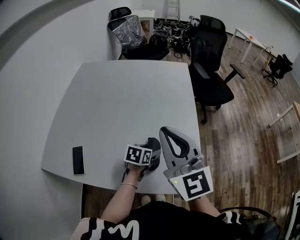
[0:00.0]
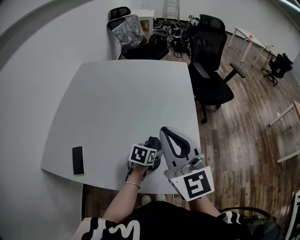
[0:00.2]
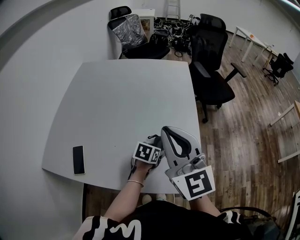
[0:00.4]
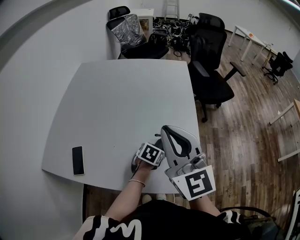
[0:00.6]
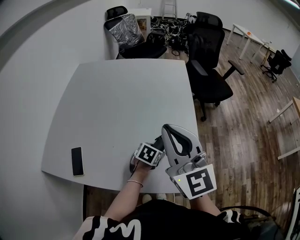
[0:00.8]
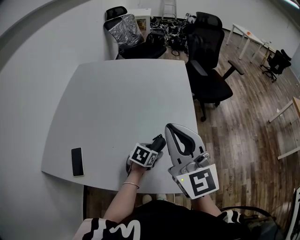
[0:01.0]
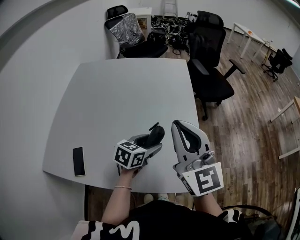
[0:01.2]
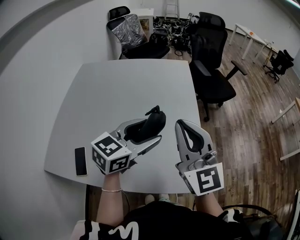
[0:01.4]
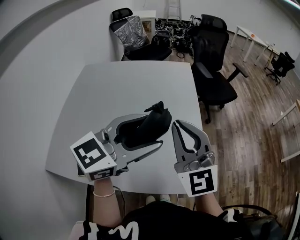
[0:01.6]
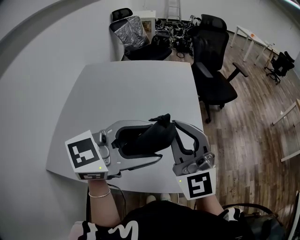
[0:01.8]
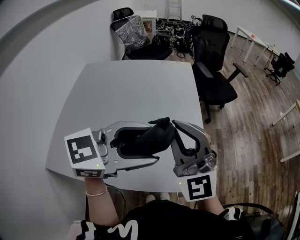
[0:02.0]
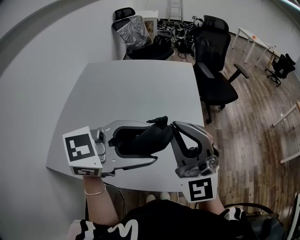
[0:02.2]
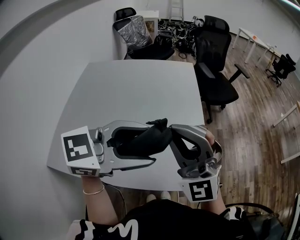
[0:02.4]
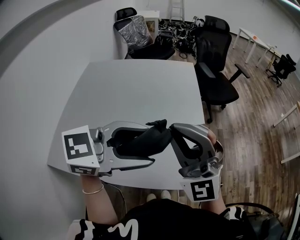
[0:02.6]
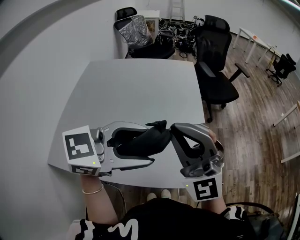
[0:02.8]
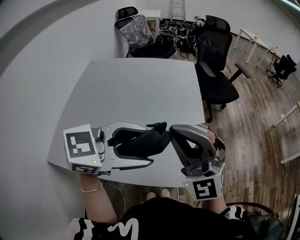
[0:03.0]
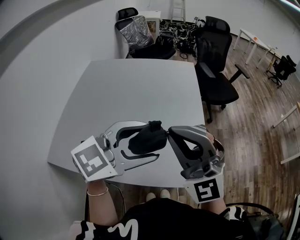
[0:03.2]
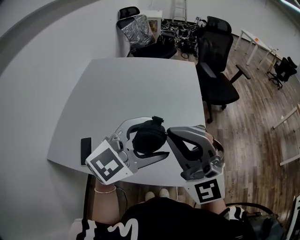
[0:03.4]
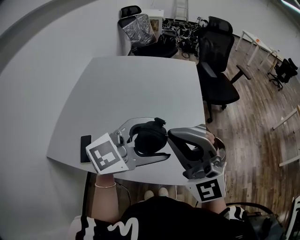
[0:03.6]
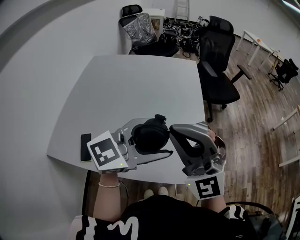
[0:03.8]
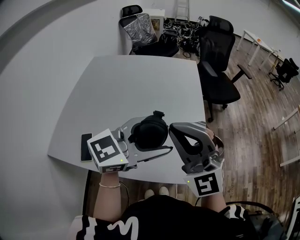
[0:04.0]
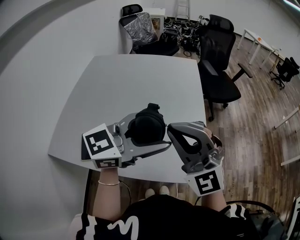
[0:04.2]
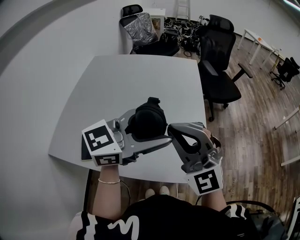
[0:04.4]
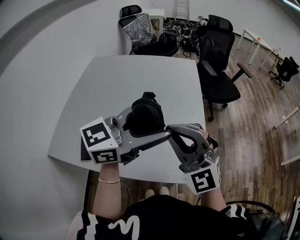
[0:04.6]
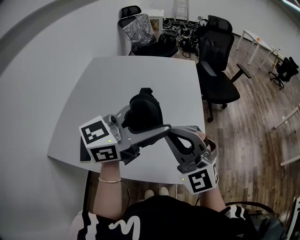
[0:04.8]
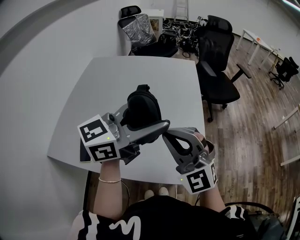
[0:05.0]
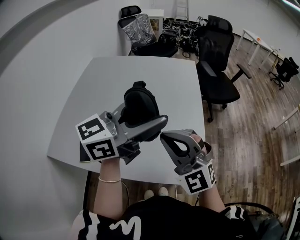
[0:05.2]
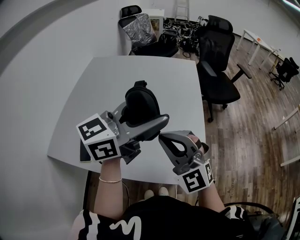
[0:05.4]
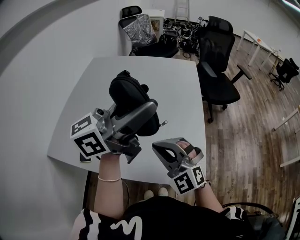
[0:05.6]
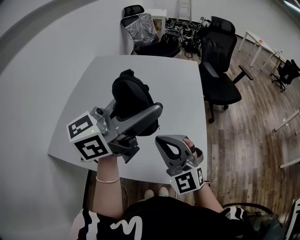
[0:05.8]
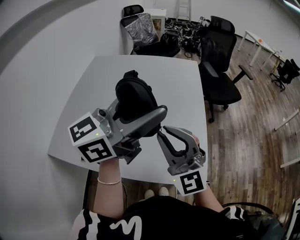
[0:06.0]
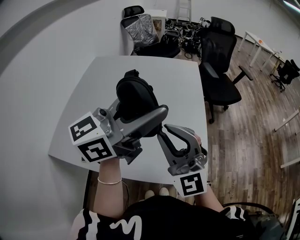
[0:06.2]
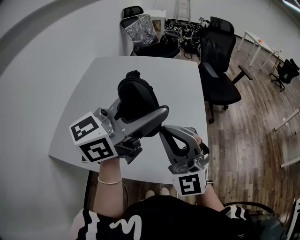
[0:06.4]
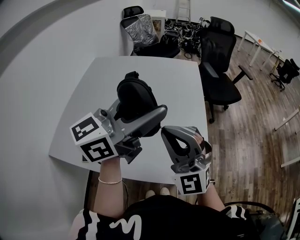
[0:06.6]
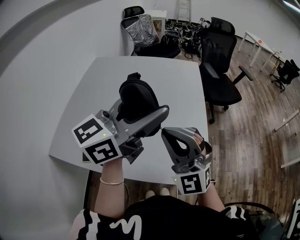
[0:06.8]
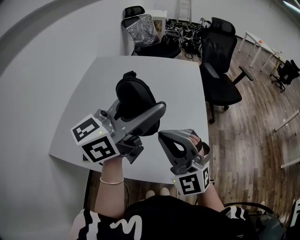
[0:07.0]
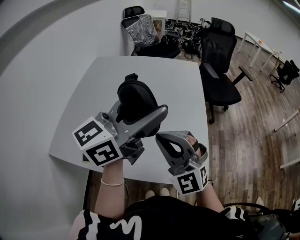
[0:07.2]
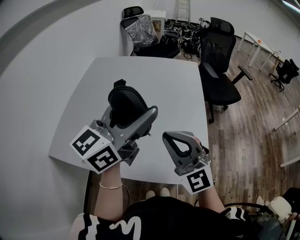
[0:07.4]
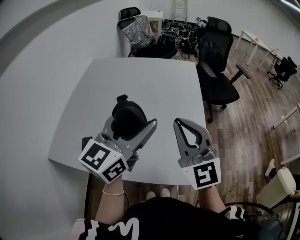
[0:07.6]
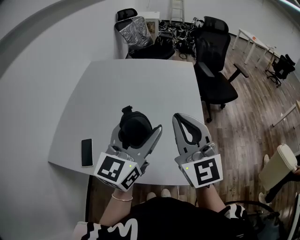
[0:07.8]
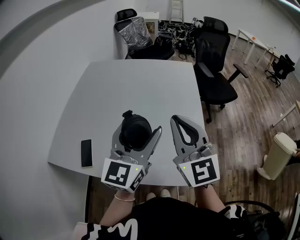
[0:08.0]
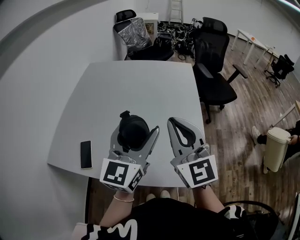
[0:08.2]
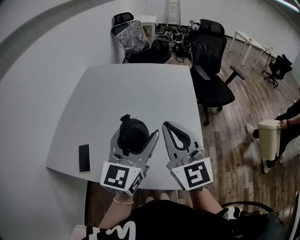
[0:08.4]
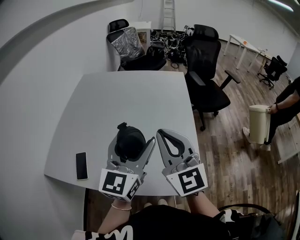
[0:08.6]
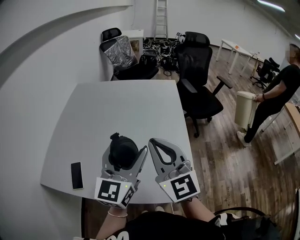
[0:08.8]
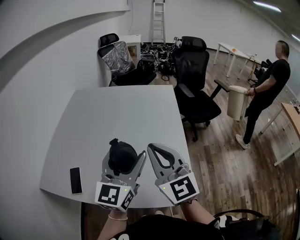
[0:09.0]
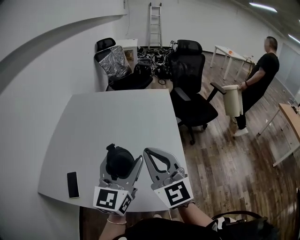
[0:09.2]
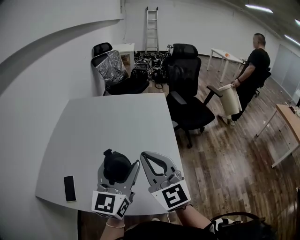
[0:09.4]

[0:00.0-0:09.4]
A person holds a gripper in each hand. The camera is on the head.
0:00.0 to 0:01.6: The left gripper goes roughly 35 cm upward, and angles its fingers upward, by about 40 degrees.
0:01.6 to 0:03.2: Both grippers move backward, about 10 cm. The right gripper rotates roughly 30 degrees.
0:03.2 to 0:04.8: The left gripper is displaced forward and upward by some 5 cm, and rotates roughly 30 degrees; the right gripper travels downward by about 5 cm.
0:04.8 to 0:06.2: The right gripper goes downward and returns, some 10 cm each way. The left gripper changes place by approximately 5 cm.
0:06.2 to 0:07.8: The right gripper shifts about 5 cm forward, and rotates roughly 20 degrees. The left gripper is displaced downward by approximately 10 cm, and changes its angle by some 30 degrees.
0:07.8 to 0:09.4: The left gripper travels to the right by approximately 5 cm.

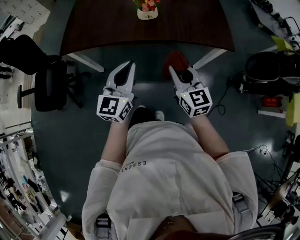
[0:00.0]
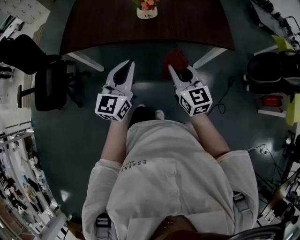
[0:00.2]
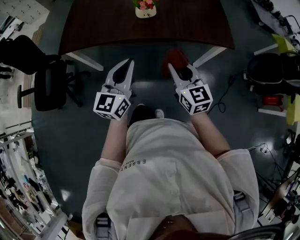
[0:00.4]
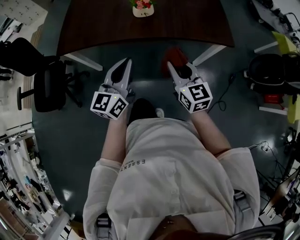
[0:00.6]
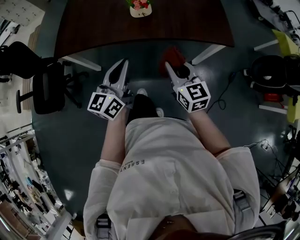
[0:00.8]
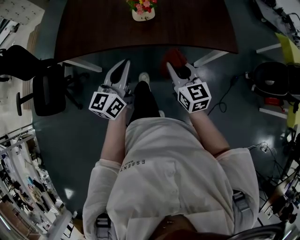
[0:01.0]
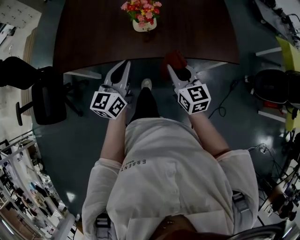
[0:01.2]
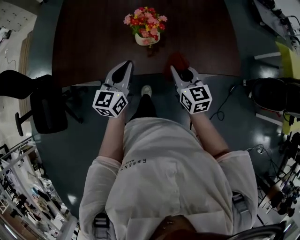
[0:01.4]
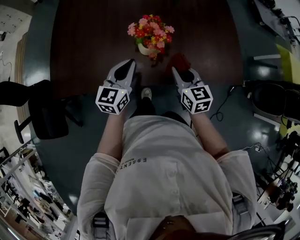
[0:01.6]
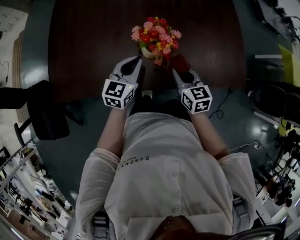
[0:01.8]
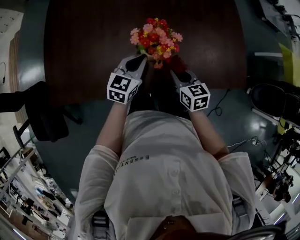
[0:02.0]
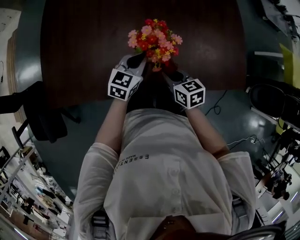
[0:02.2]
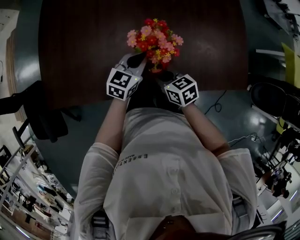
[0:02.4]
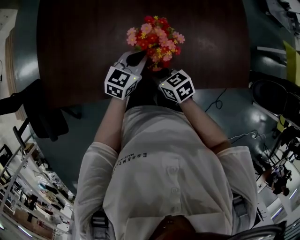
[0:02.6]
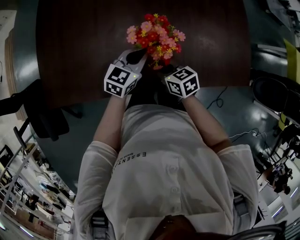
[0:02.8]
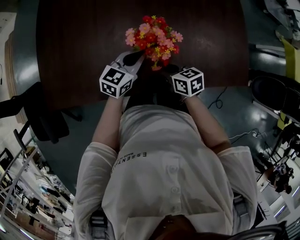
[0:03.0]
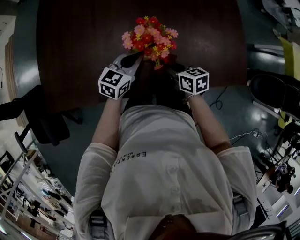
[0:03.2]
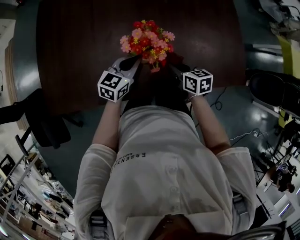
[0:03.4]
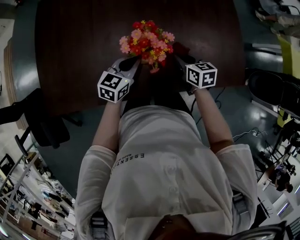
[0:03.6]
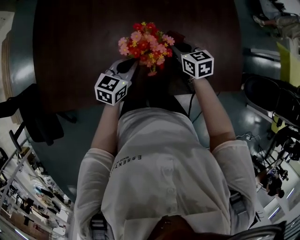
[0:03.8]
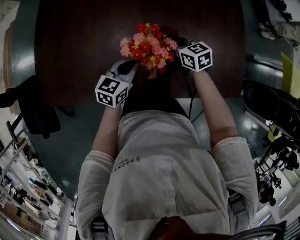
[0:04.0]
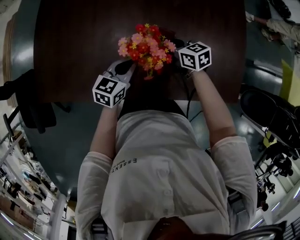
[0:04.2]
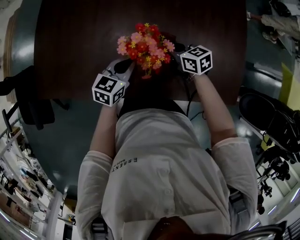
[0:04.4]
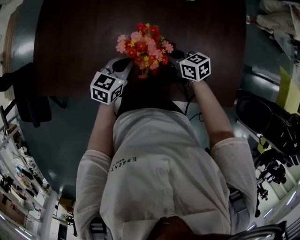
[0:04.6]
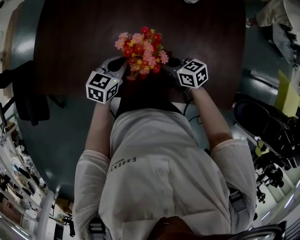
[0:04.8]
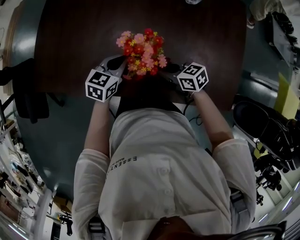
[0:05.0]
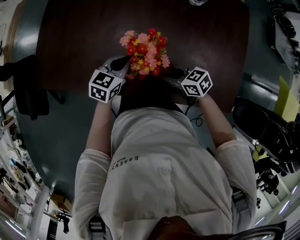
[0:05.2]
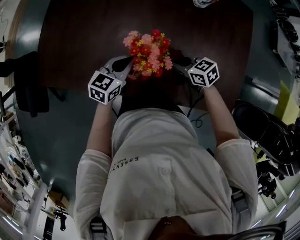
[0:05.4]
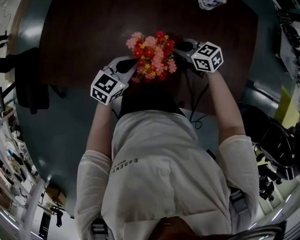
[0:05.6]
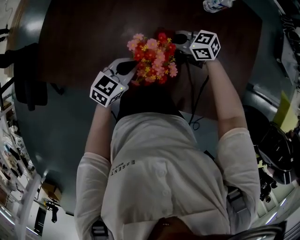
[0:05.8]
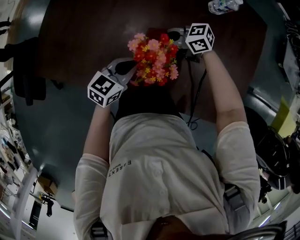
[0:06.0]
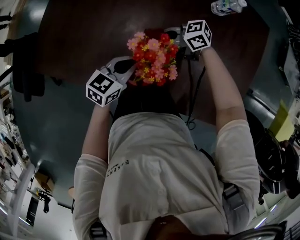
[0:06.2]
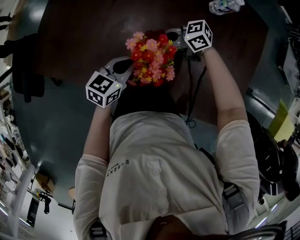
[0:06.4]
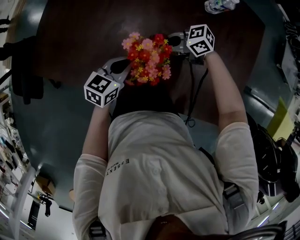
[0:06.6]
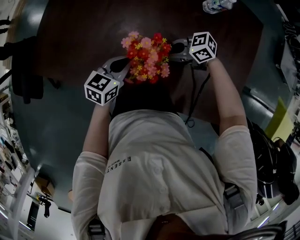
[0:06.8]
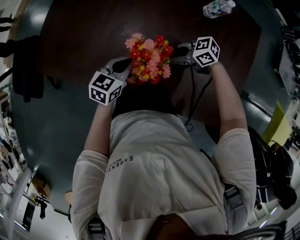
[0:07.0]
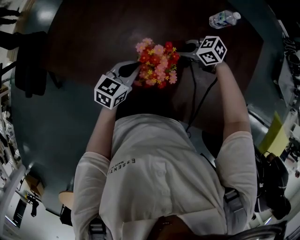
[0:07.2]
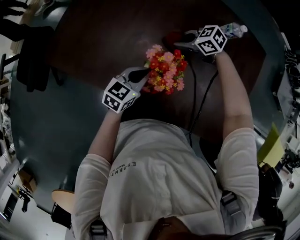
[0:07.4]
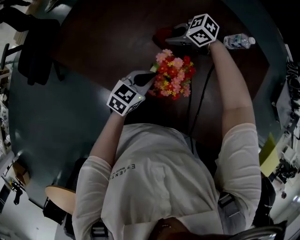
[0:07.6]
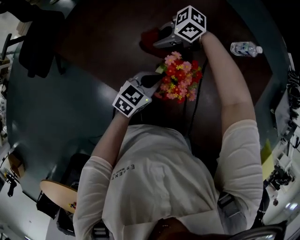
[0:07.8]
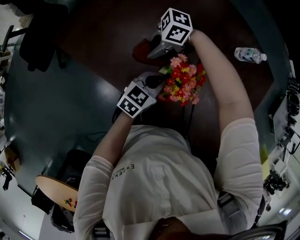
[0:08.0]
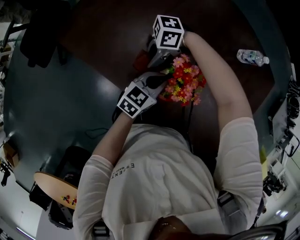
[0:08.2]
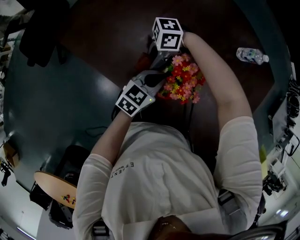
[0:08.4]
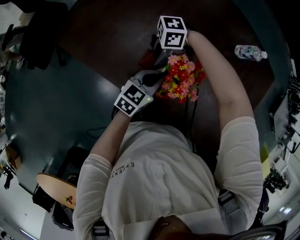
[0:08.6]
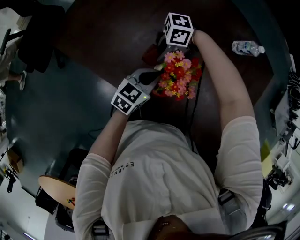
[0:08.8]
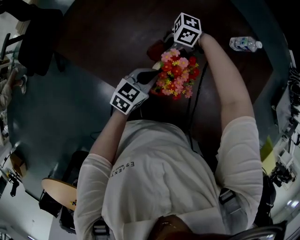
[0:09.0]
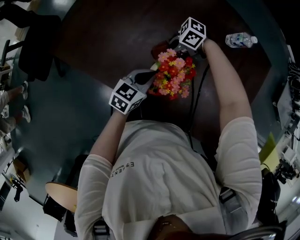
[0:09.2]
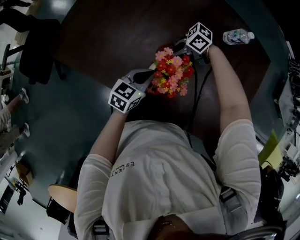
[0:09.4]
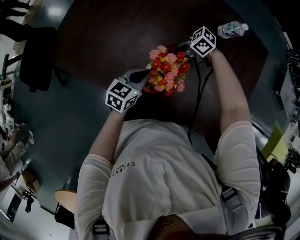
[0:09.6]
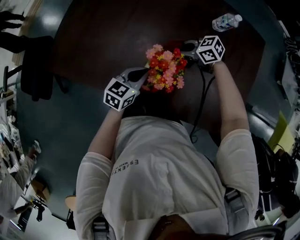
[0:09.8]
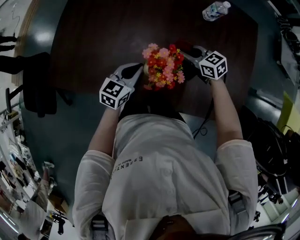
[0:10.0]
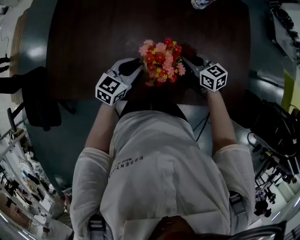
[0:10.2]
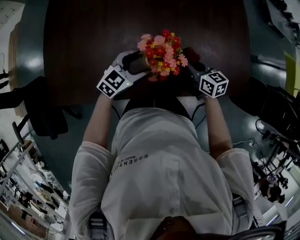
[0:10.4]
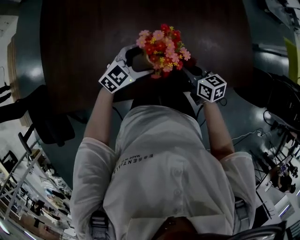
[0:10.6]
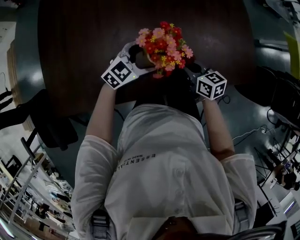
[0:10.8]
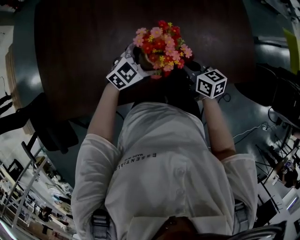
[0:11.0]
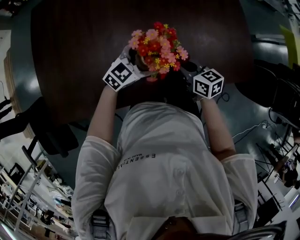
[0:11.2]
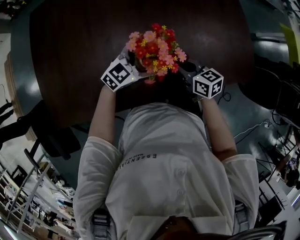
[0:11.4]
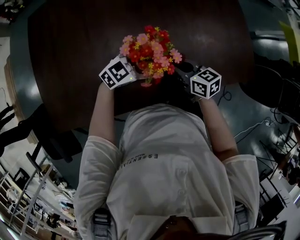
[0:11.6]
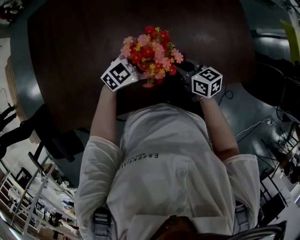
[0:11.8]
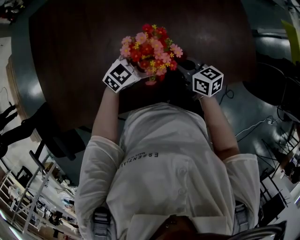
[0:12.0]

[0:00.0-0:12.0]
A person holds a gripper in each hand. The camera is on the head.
0:00.0 to 0:01.6: The two grippers go some 30 cm forward.
0:01.6 to 0:03.0: The left gripper shifts some 10 cm downward and forward, and swivels approximately 20 degrees; the right gripper travels downward and to the left by some 10 cm, and turns by some 30 degrees.
0:03.0 to 0:04.4: The right gripper heads forward, covering some 10 cm.
0:04.4 to 0:06.0: The right gripper changes its angle by some 50 degrees.
0:06.0 to 0:07.6: The right gripper shifts by some 10 cm, and changes its angle by some 30 degrees.
0:07.6 to 0:09.0: The right gripper swivels some 30 degrees.
0:09.0 to 0:10.4: The left gripper turns by about 50 degrees, and opens; the right gripper changes place by about 20 cm, and swivels about 110 degrees.
0:10.4 to 0:12.0: The left gripper goes some 5 cm to the right, and opens its fingers, while the right gripper shifts by about 5 cm.

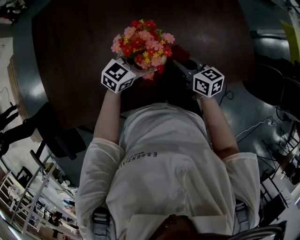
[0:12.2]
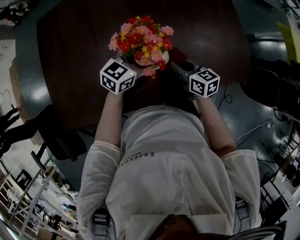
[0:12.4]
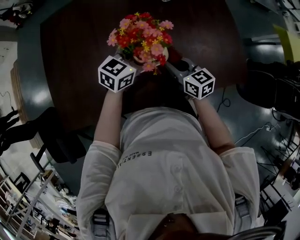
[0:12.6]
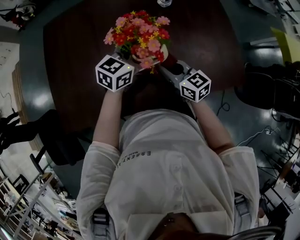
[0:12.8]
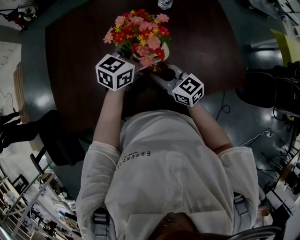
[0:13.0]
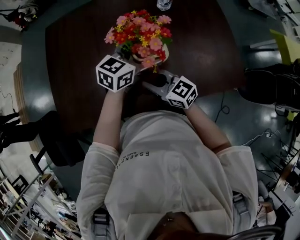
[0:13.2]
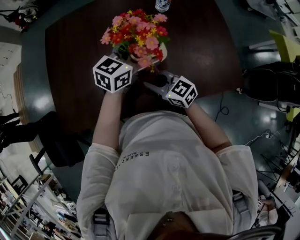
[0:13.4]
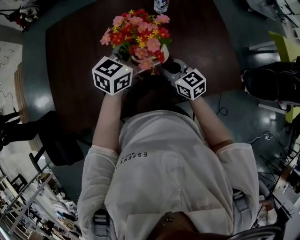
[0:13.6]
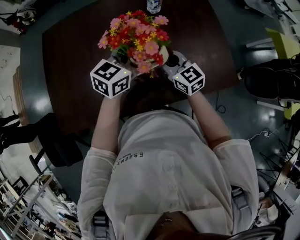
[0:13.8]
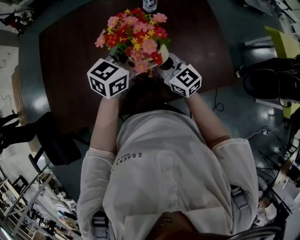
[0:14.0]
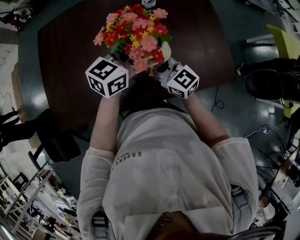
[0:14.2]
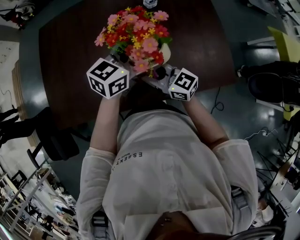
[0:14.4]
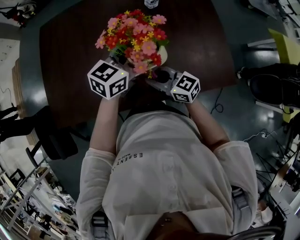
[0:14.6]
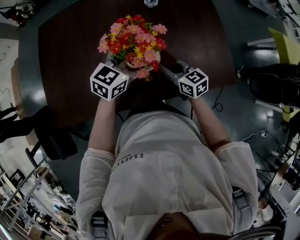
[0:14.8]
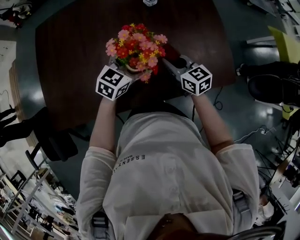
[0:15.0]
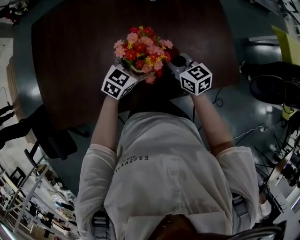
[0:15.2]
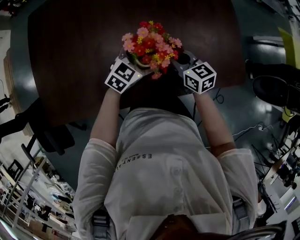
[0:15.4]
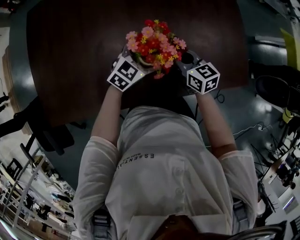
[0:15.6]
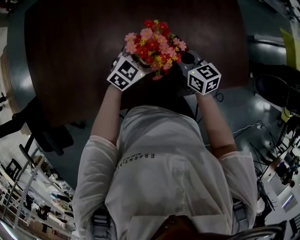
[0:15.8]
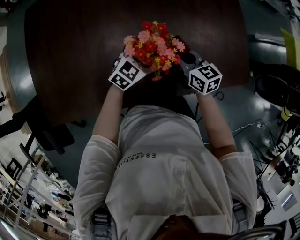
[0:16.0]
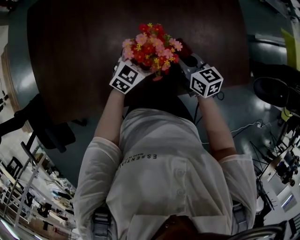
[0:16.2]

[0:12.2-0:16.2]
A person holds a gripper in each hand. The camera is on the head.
0:12.2 to 0:13.6: The left gripper is displaced upward by some 15 cm; the right gripper heads upward, covering about 10 cm, reaches some 10 cm to the left, then returns, and changes its angle by approximately 20 degrees.
0:13.6 to 0:14.8: The right gripper travels backward and back again, roughly 5 cm each way.
0:14.8 to 0:16.2: The left gripper travels downward by about 15 cm.
